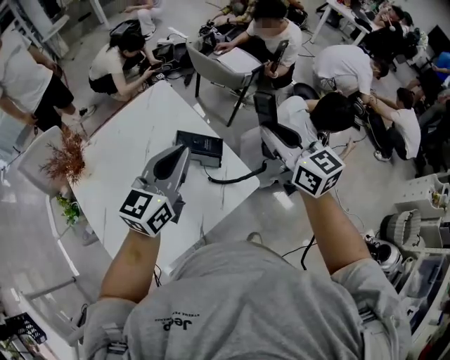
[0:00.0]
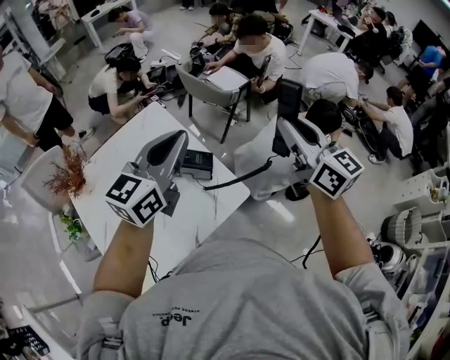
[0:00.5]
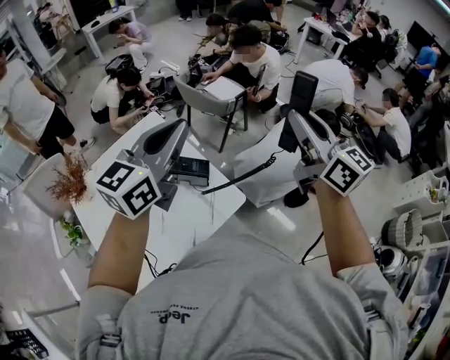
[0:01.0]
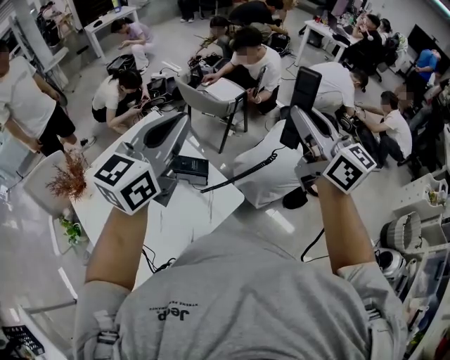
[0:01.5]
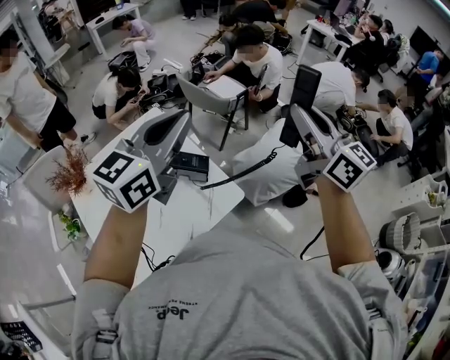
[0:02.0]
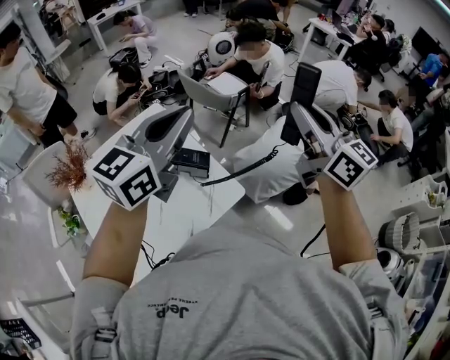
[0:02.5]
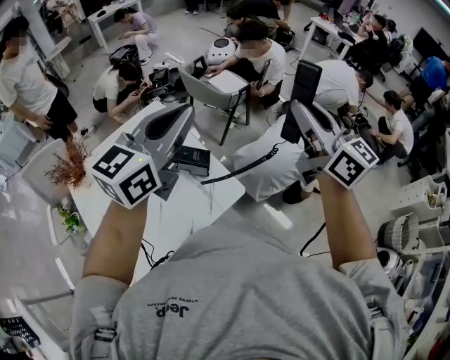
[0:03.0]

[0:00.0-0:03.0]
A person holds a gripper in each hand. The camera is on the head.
0:00.0 to 0:01.5: The grippers both shift upward and to the right by approximately 20 cm. The right gripper rotates roughly 20 degrees.
0:01.5 to 0:03.0: The grippers move only a little.

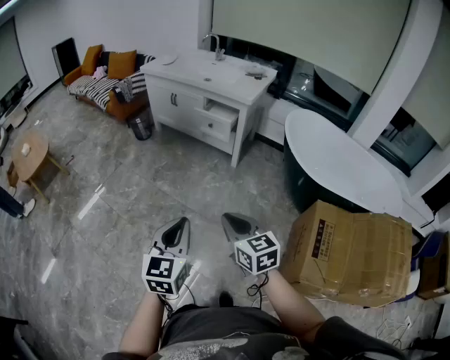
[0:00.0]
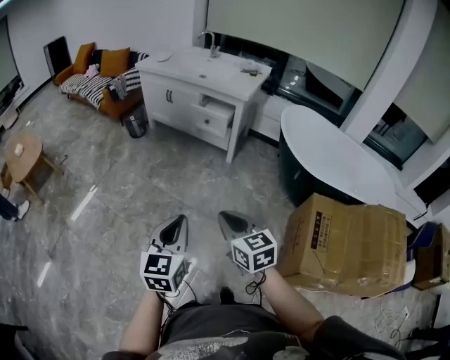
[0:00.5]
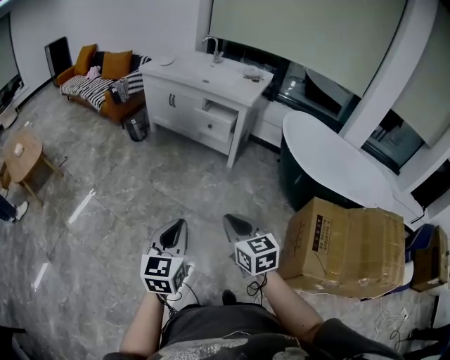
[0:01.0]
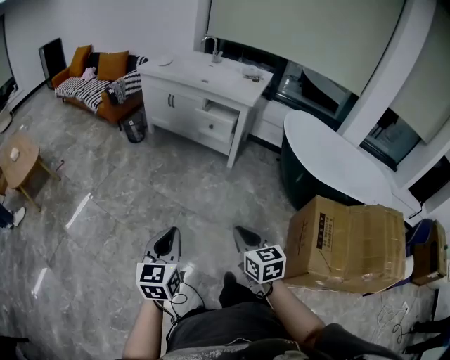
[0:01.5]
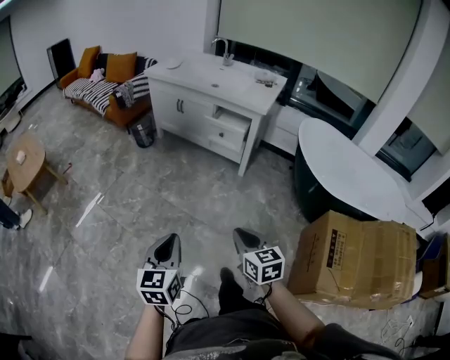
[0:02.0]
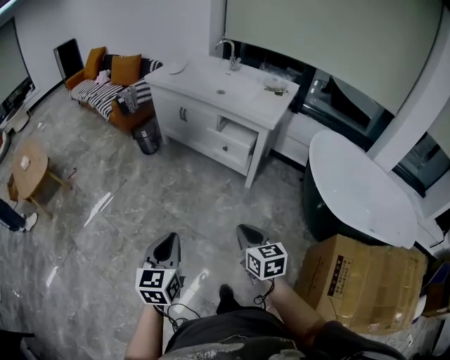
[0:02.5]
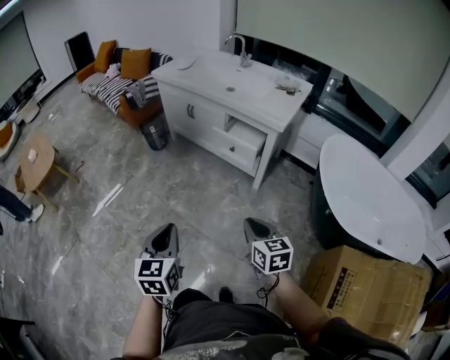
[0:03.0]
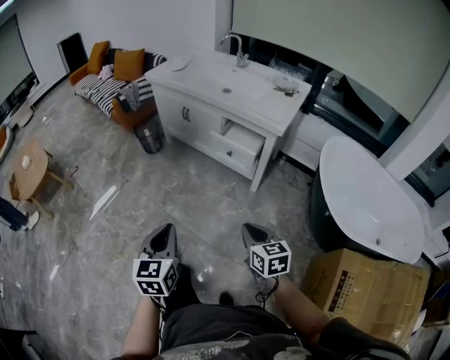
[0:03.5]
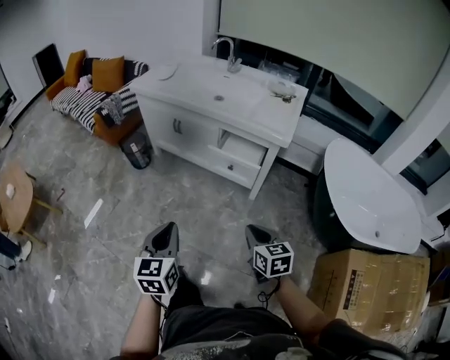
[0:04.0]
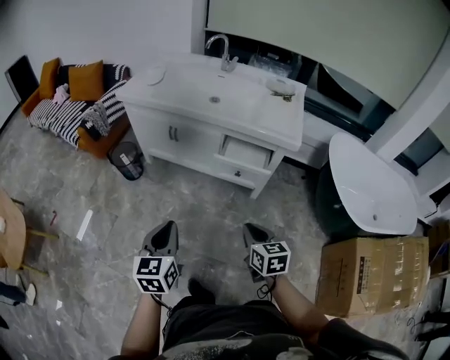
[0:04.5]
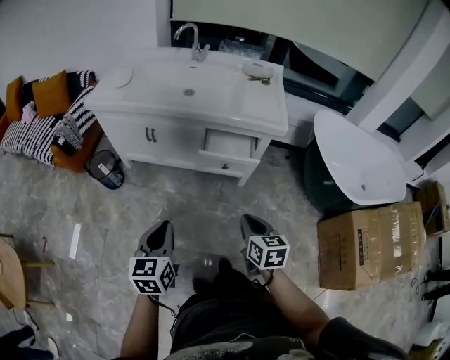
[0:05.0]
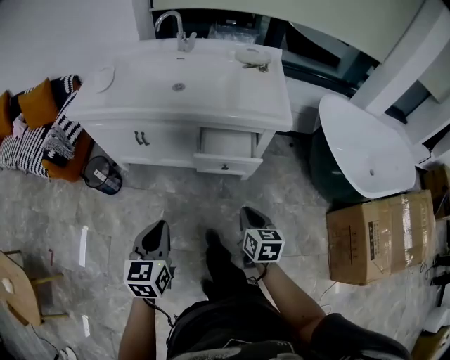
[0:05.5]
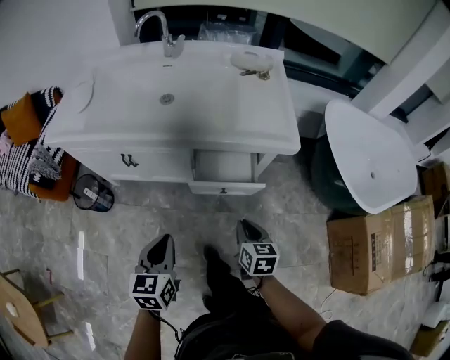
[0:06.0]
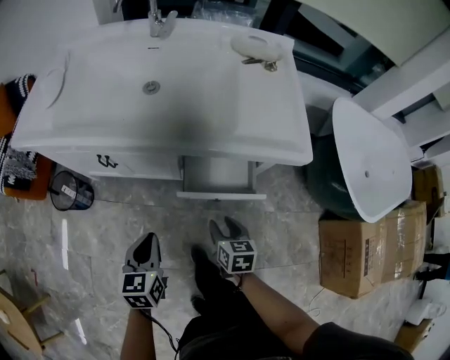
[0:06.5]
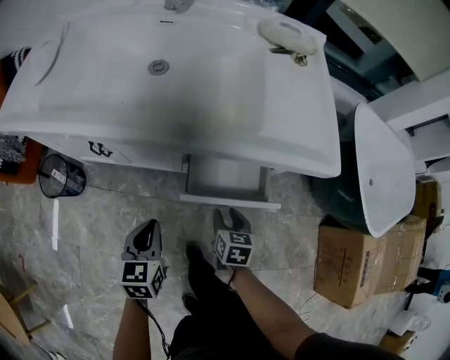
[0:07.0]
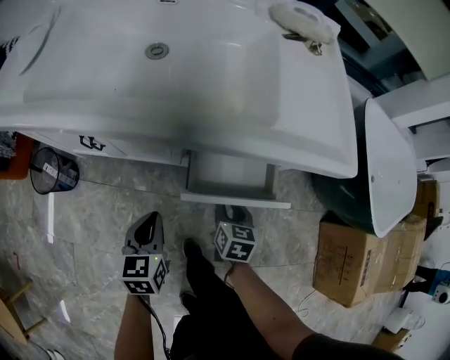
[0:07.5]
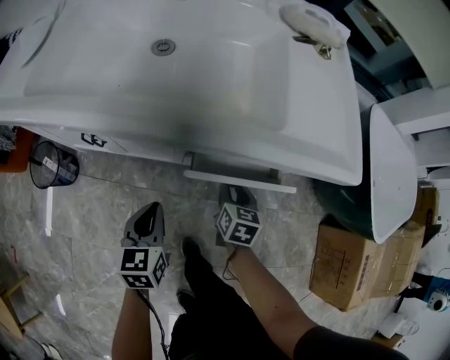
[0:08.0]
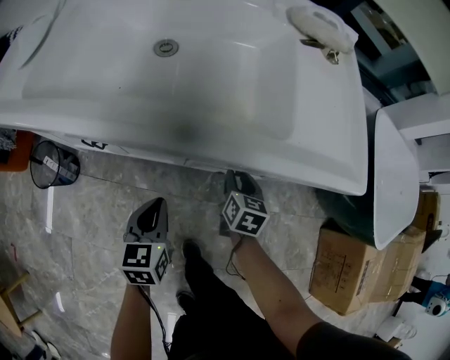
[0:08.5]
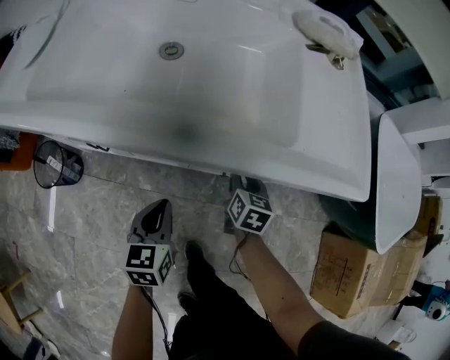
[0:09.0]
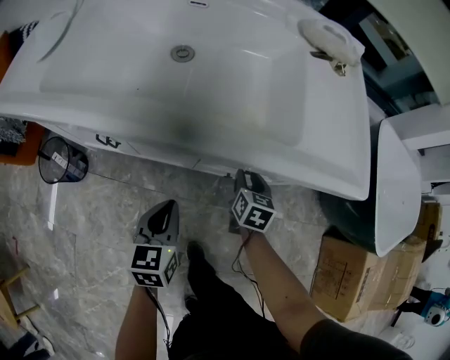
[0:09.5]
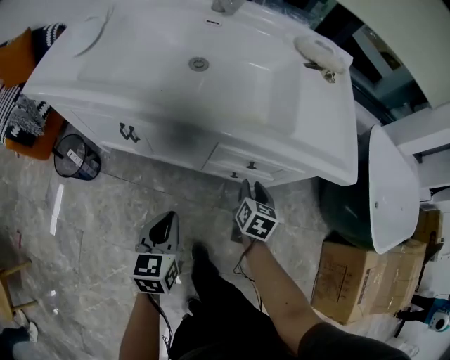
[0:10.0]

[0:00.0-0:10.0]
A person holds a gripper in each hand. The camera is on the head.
0:00.0 to 0:02.0: The left gripper is displaced to the left, forward and downward by some 15 cm; the right gripper shifts roughly 10 cm to the left, forward and downward.
0:02.0 to 0:04.0: The grippers both shift forward by approximately 35 cm.
0:04.0 to 0:06.0: The left gripper ends up some 35 cm from where it was, and turns by roughly 30 degrees. The right gripper moves some 30 cm, and swivels approximately 30 degrees.
0:06.0 to 0:08.0: The left gripper travels downward and forward by about 25 cm, while the right gripper is displaced forward and downward by some 30 cm, and opens its fingers.
0:08.0 to 0:10.0: The right gripper goes roughly 5 cm upward. The left gripper goes some 10 cm backward and upward.

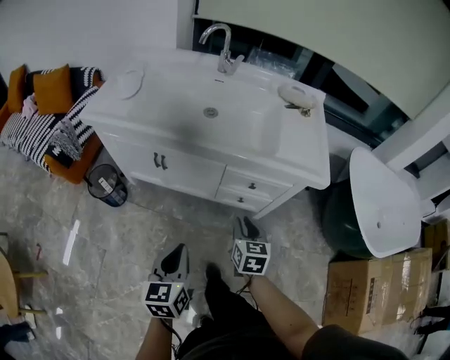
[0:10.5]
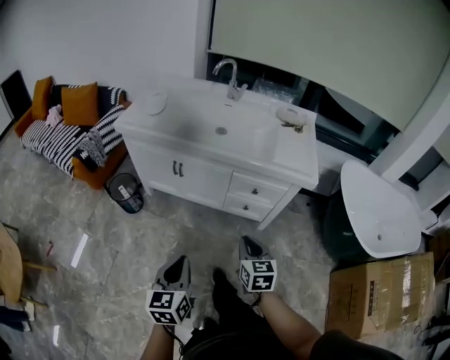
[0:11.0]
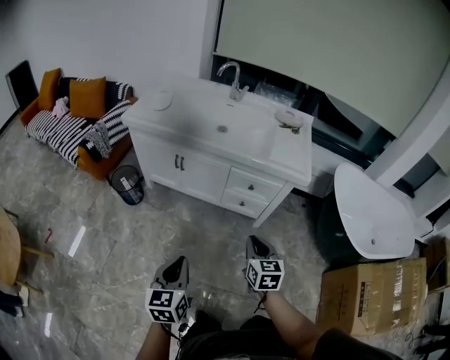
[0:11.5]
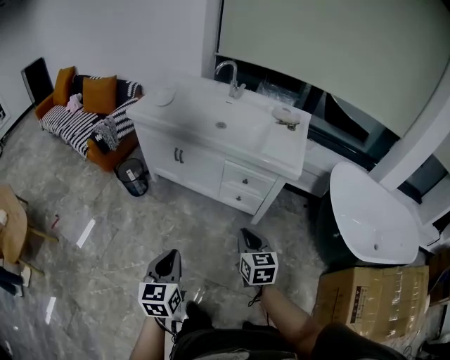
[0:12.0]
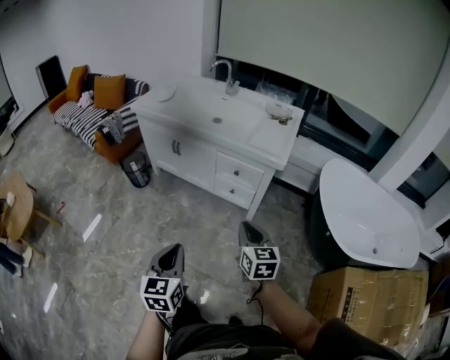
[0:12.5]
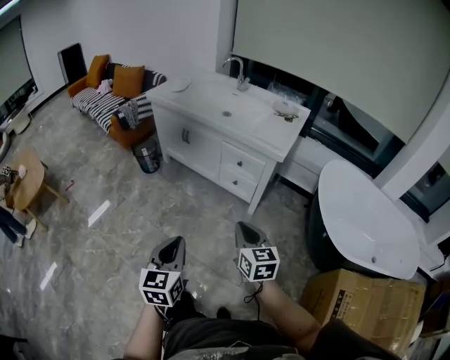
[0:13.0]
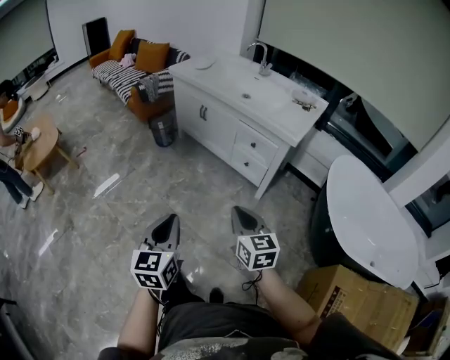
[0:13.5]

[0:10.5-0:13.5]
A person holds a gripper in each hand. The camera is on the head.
0:10.5 to 0:12.0: The two grippers go some 25 cm backward and upward. The right gripper turns by approximately 20 degrees.
0:12.0 to 0:13.5: The left gripper goes some 25 cm backward and to the right; the right gripper is displaced backward by approximately 20 cm, and swivels roughly 20 degrees.

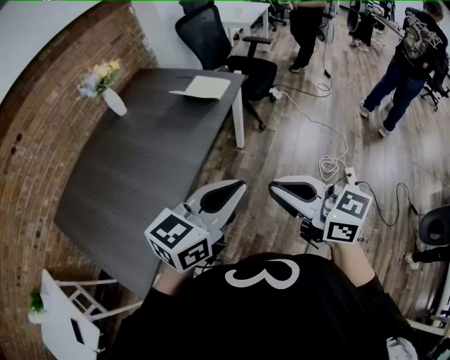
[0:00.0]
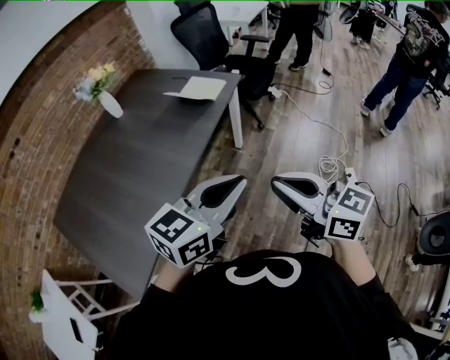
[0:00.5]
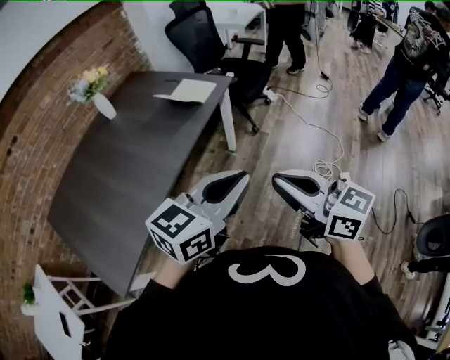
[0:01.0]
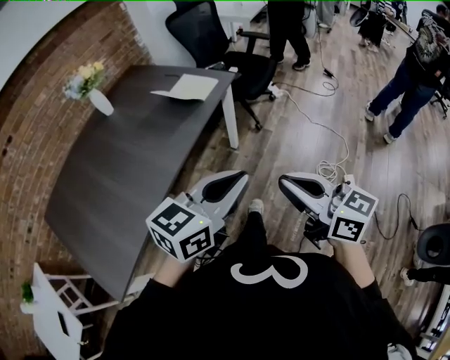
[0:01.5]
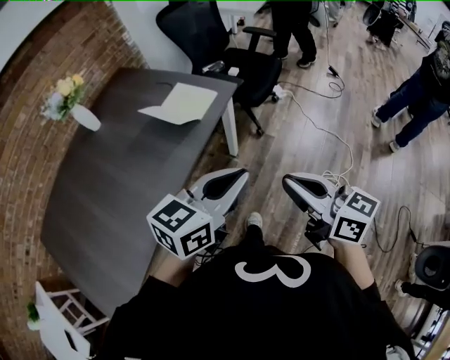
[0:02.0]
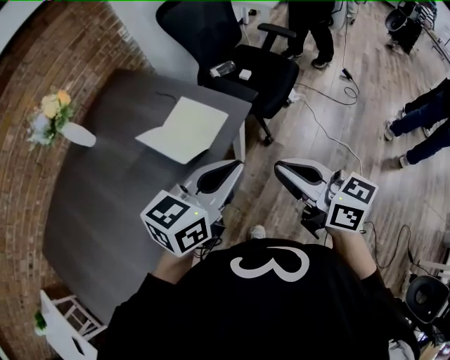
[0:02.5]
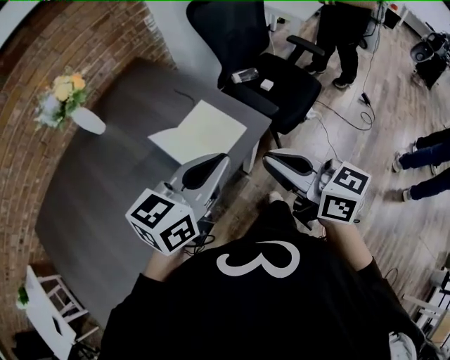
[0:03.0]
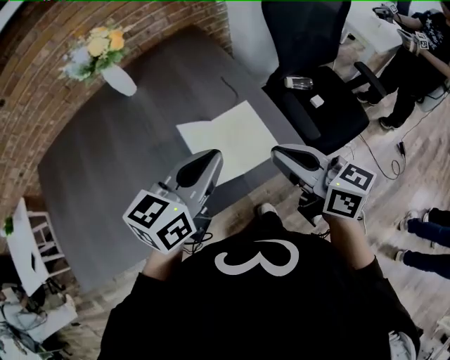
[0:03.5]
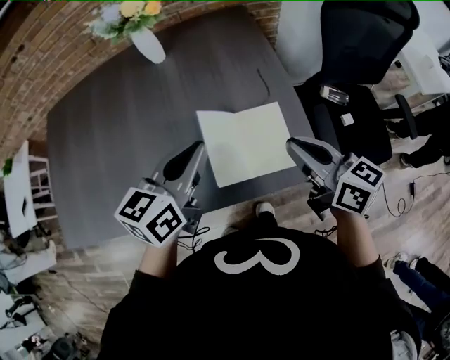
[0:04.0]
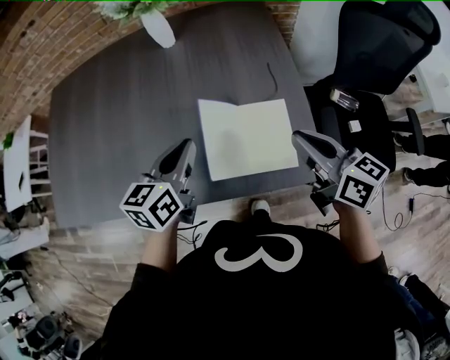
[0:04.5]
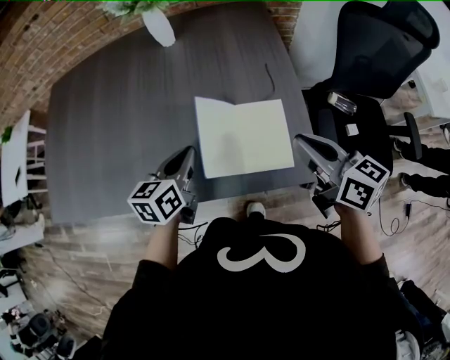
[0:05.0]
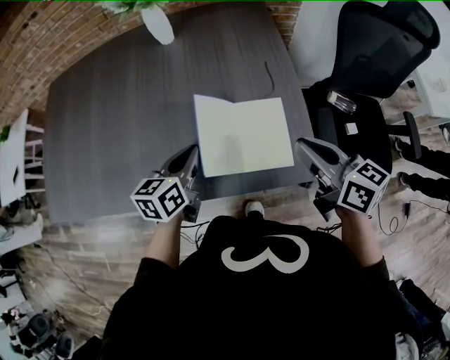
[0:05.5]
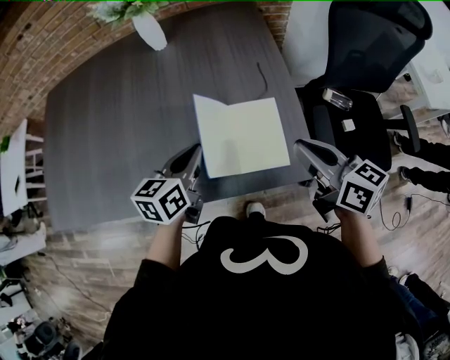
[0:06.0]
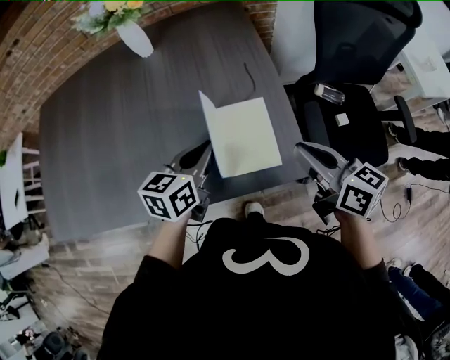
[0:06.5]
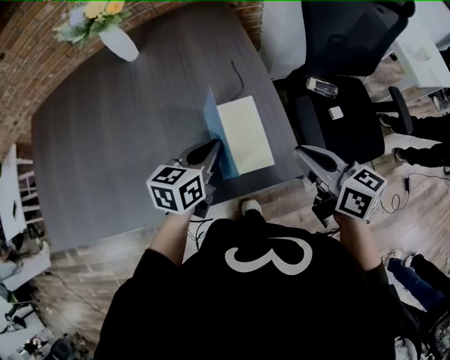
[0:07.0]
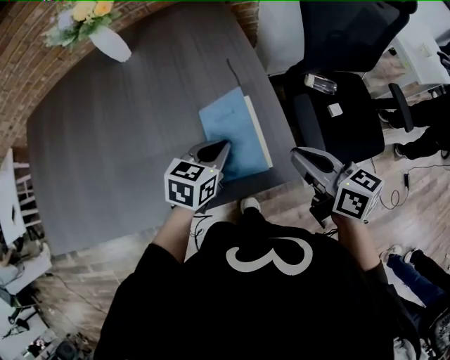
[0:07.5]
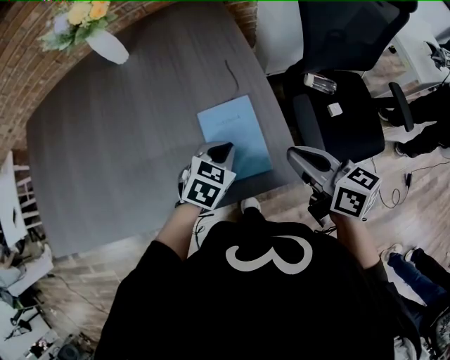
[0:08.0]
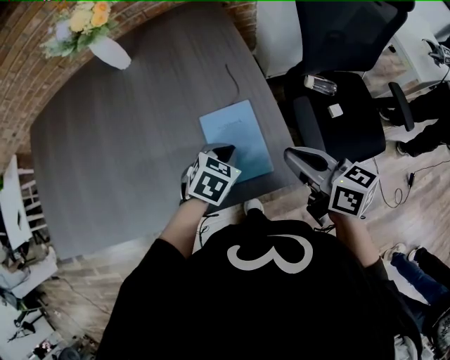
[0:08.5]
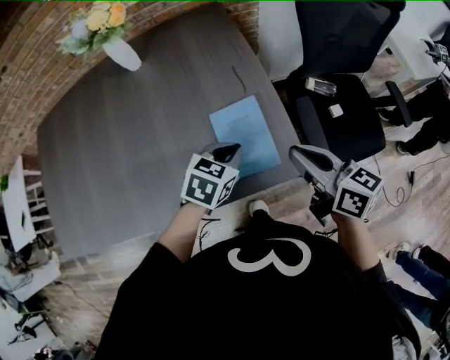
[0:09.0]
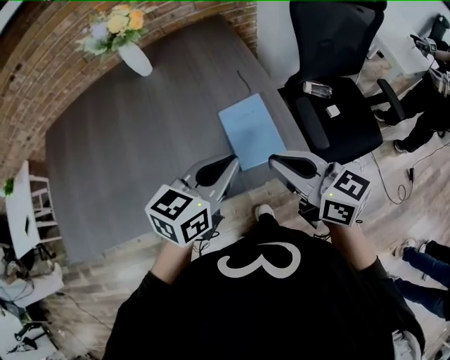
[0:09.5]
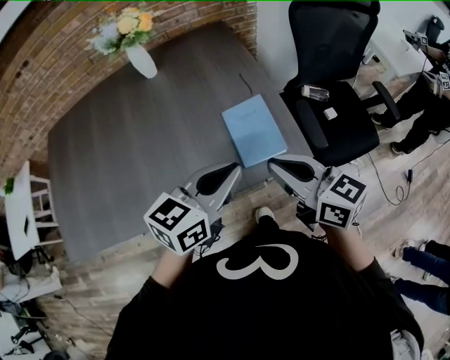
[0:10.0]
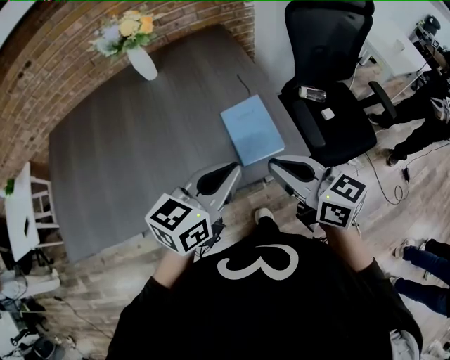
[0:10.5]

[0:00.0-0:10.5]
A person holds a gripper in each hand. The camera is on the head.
0:00.0 to 0:02.0: The grippers both shift forward and to the right by approximately 30 cm.
0:02.0 to 0:04.0: The left gripper moves approximately 40 cm, and rotates some 60 degrees. Meanwhile the right gripper shifts by approximately 50 cm, and changes its angle by about 50 degrees.
0:04.0 to 0:06.5: The right gripper shifts some 5 cm to the right. Meanwhile the left gripper travels downward and to the right by roughly 15 cm.
0:06.5 to 0:08.5: The left gripper shifts about 15 cm downward and to the right, and tips its fingers downward by about 30 degrees.
0:08.5 to 0:10.5: The right gripper moves backward, to the left and upward, some 20 cm; the left gripper moves upward and backward, some 25 cm, and tips its fingers upward by some 40 degrees.
